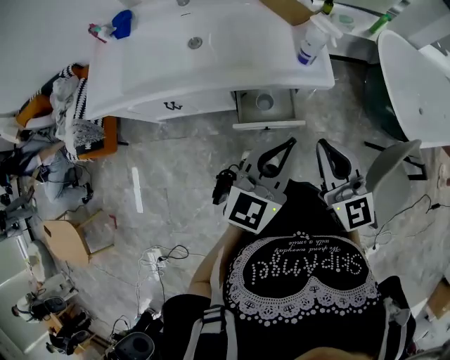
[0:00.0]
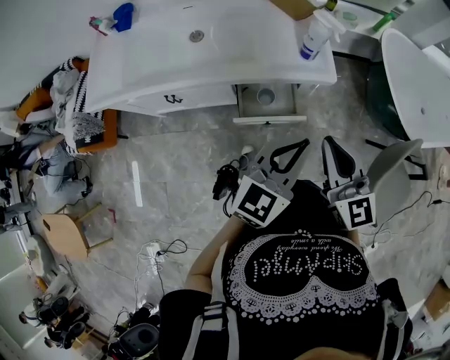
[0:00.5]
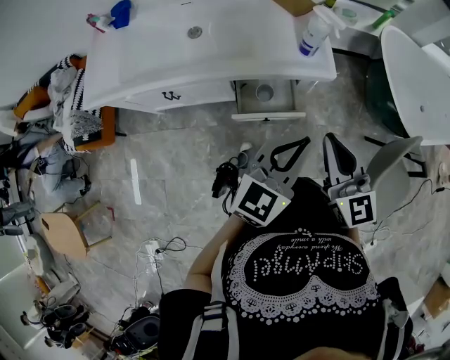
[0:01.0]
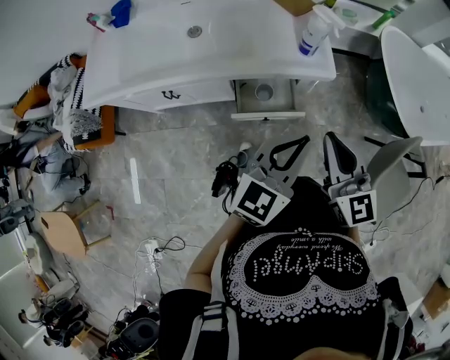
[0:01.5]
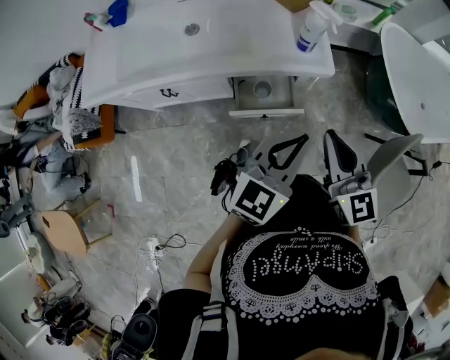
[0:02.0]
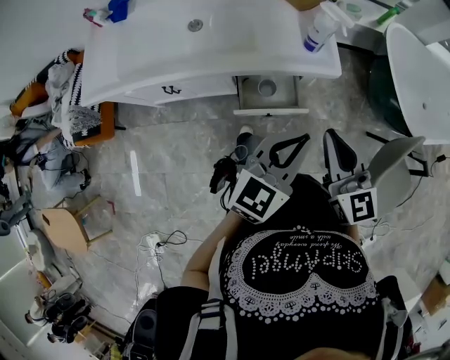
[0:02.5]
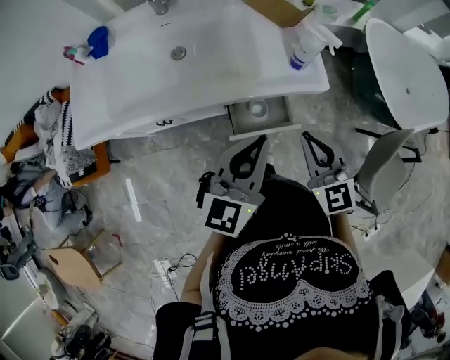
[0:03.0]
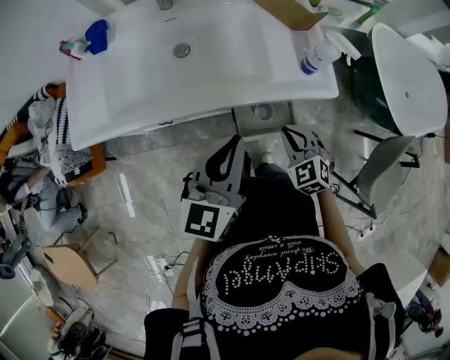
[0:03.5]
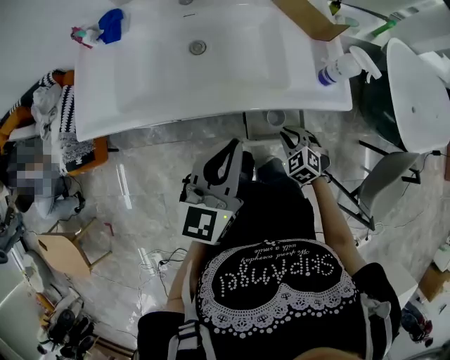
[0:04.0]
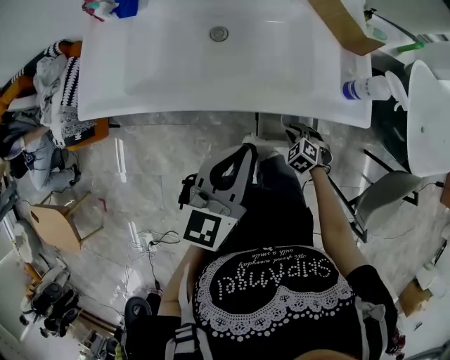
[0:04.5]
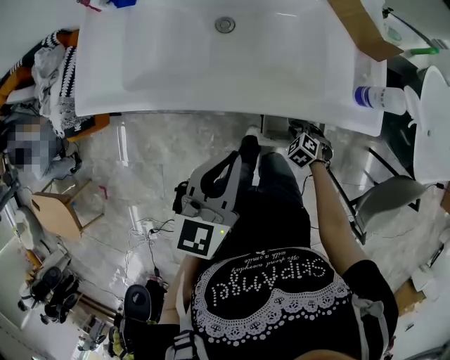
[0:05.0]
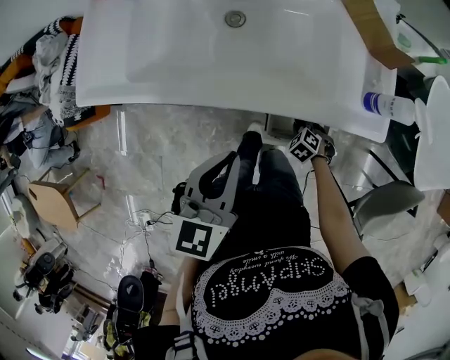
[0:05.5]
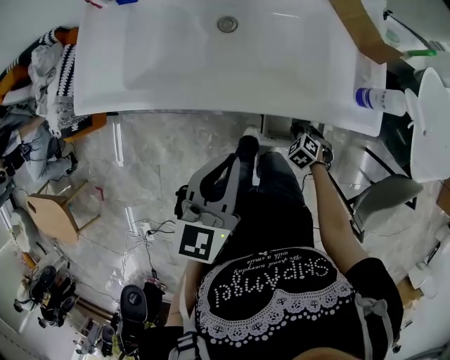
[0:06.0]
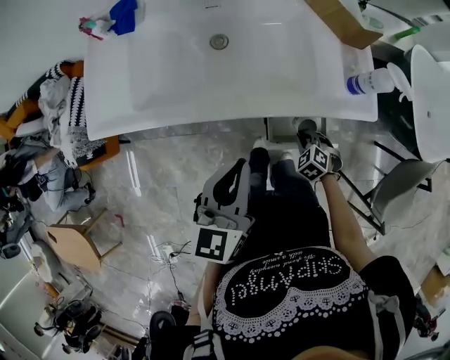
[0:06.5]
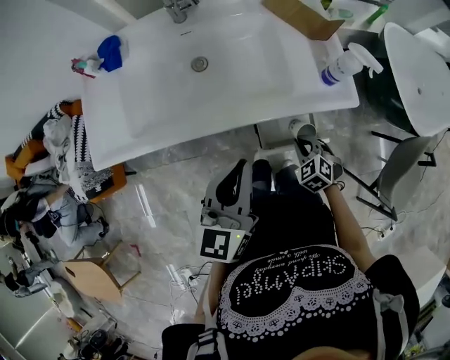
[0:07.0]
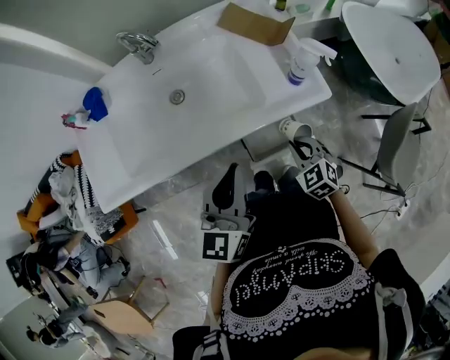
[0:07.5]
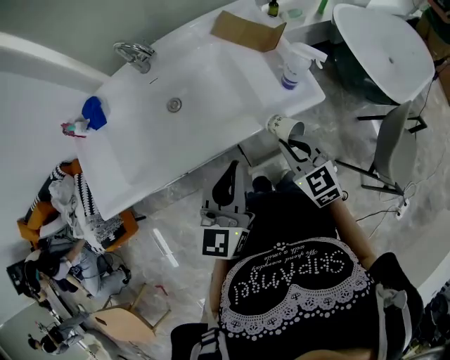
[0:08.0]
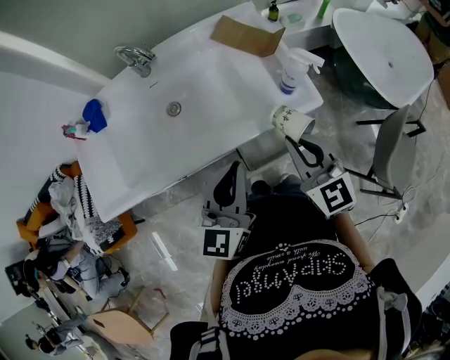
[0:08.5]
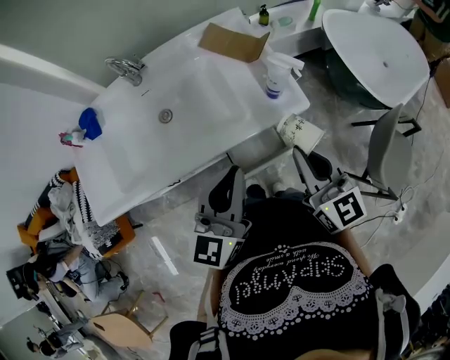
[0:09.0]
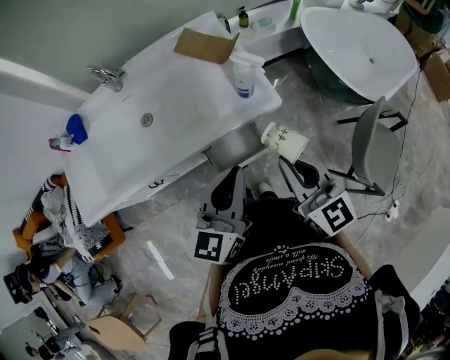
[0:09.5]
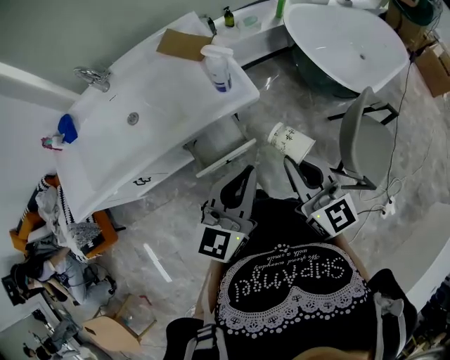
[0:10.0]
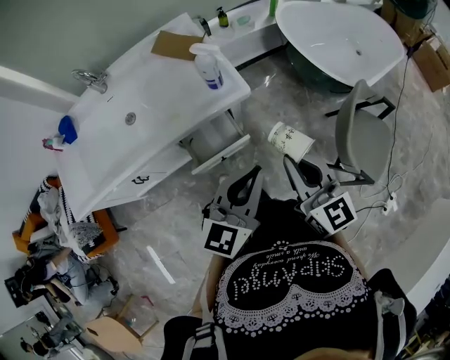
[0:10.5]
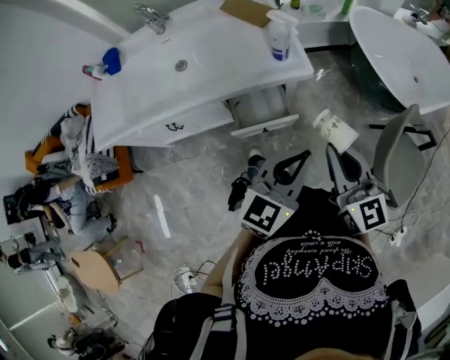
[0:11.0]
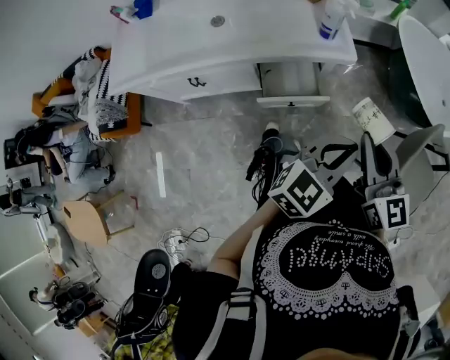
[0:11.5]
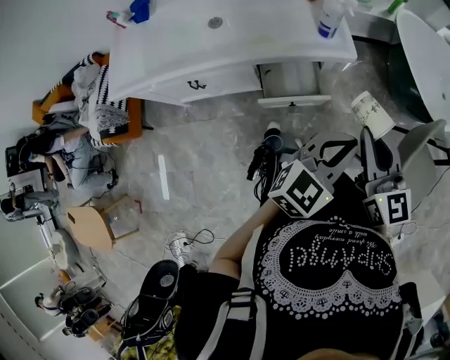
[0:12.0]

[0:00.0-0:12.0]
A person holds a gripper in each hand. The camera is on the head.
0:00.0 to 0:02.0: The grippers move only a little.
0:02.0 to 0:04.0: The left gripper goes about 25 cm to the left and forward, and turns by about 20 degrees. The right gripper goes some 30 cm downward and to the left, and points its fingers approximately 50 degrees further downward.
0:04.0 to 0:06.0: The right gripper is displaced downward by about 10 cm, and swivels some 20 degrees; the left gripper changes place by some 5 cm.
0:06.0 to 0:08.0: The left gripper ends up approximately 10 cm from where it was, and rotates about 30 degrees, while the right gripper moves upward, some 30 cm, and angles its fingers upward, by roughly 50 degrees.
0:08.0 to 0:10.0: The left gripper travels to the right by about 20 cm; the right gripper goes roughly 25 cm to the right, upward and backward, and changes its angle by approximately 30 degrees.
0:10.0 to 0:12.0: The left gripper is displaced to the right by roughly 5 cm.

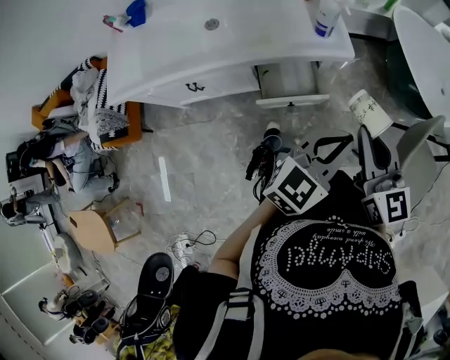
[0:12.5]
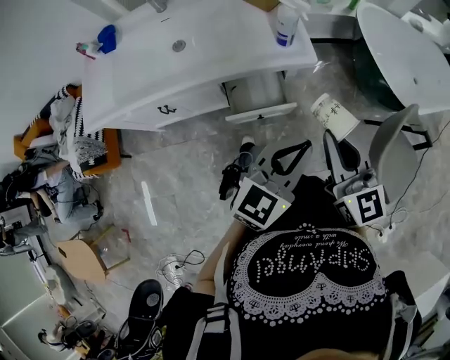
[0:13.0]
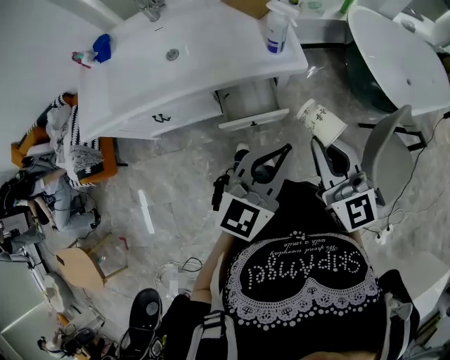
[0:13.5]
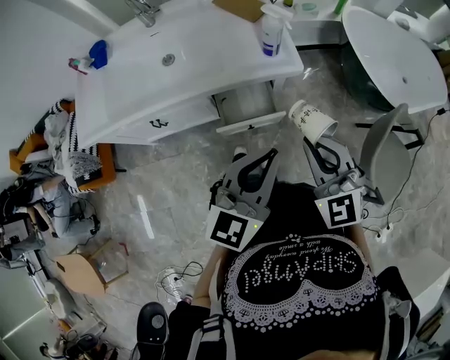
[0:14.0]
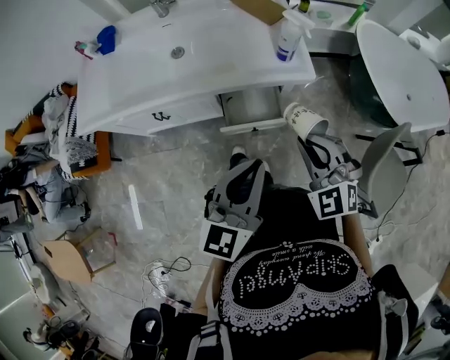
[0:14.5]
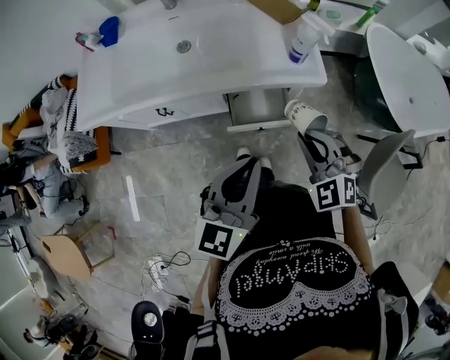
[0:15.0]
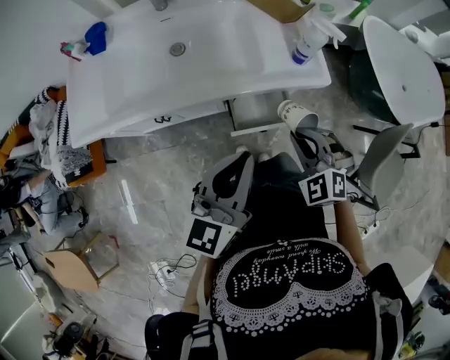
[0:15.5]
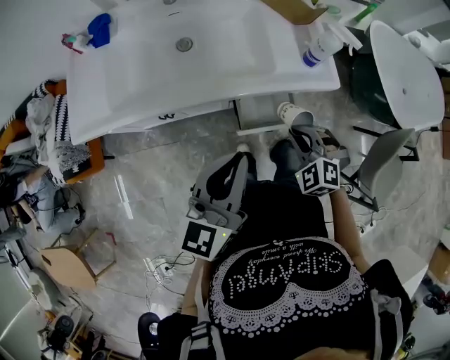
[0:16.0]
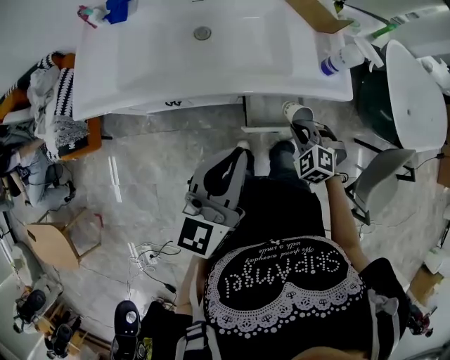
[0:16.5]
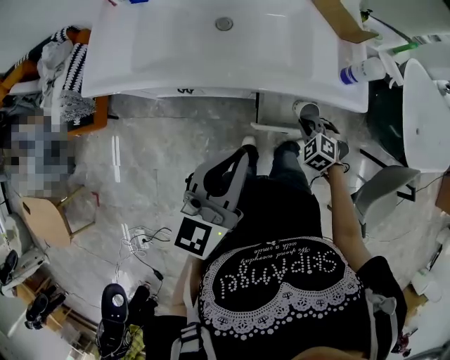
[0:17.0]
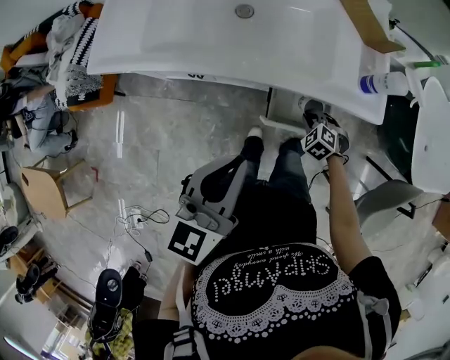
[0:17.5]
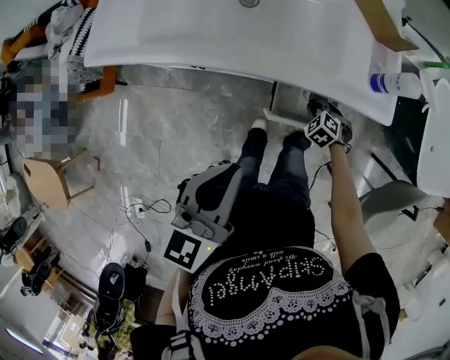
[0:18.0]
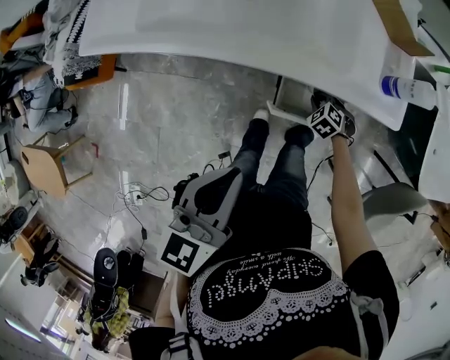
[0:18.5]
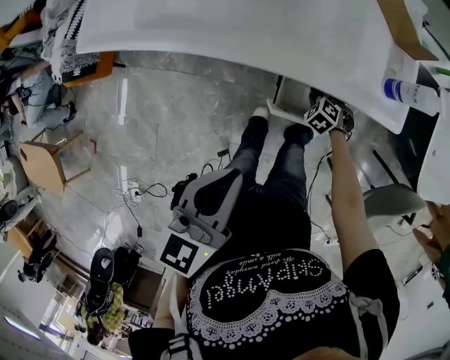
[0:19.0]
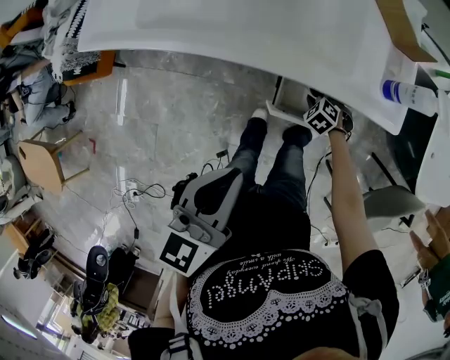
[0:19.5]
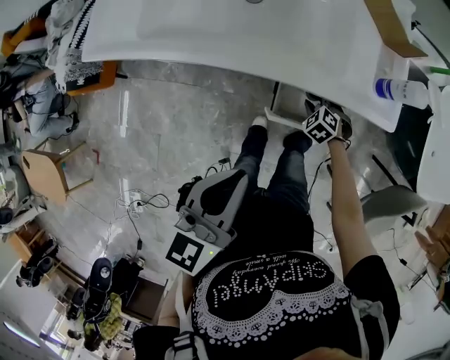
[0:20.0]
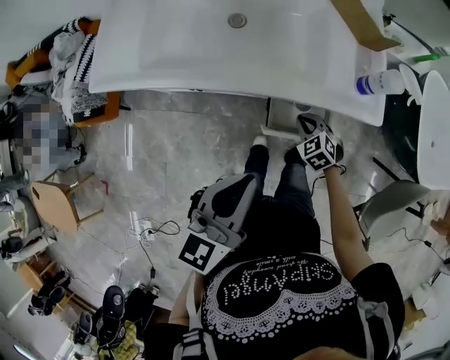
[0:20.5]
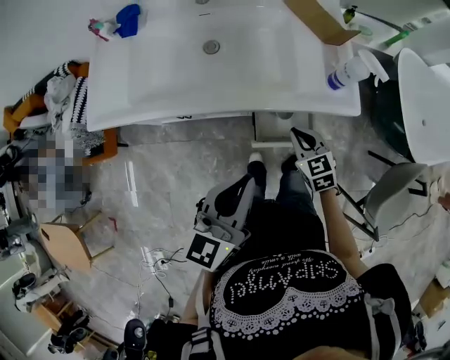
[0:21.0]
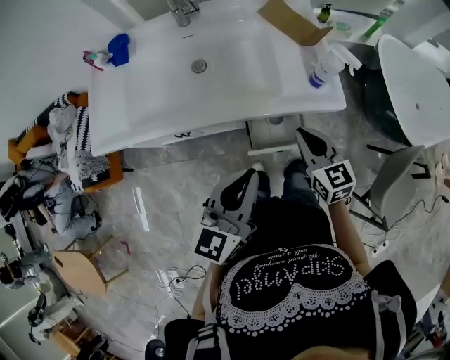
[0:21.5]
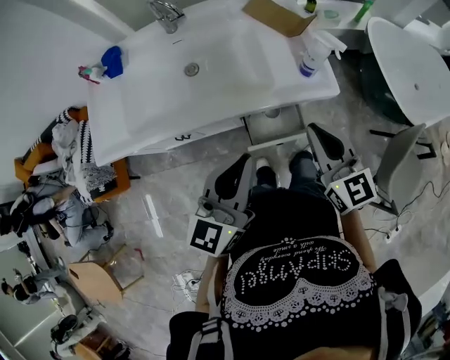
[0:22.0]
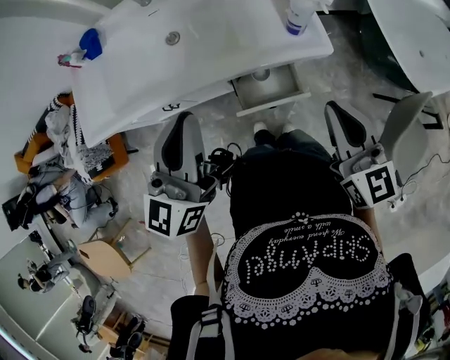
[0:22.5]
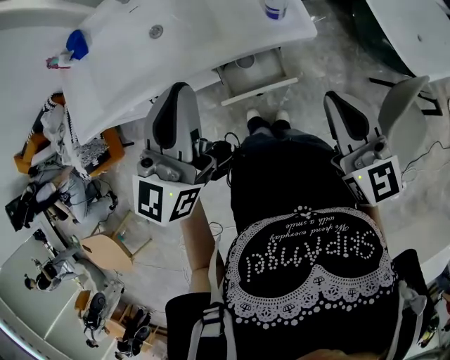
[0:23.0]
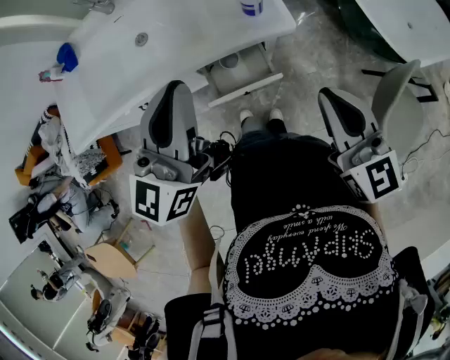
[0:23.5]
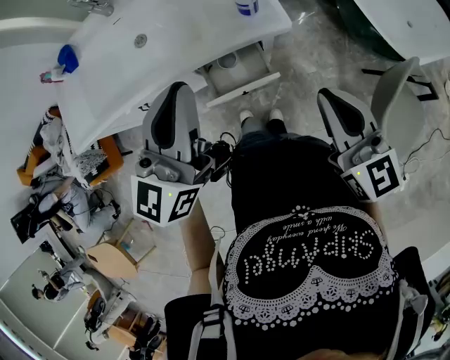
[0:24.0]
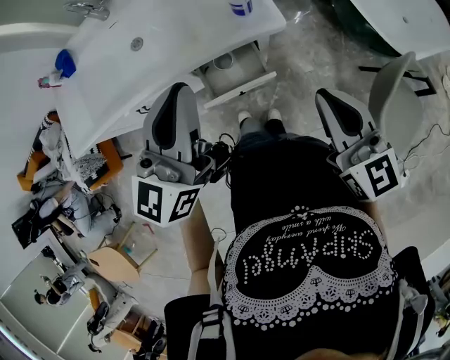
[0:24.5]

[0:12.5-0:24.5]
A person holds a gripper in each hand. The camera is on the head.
0:12.5 to 0:14.5: The left gripper travels to the left by some 10 cm, and swivels about 30 degrees, while the right gripper goes some 5 cm downward, and rolls counterclockwise, seen from behind, by some 50 degrees.
0:14.5 to 0:16.5: The right gripper is displaced downward, forward and to the left by approximately 25 cm, and turns by about 30 degrees. The left gripper travels to the left and forward by some 20 cm.
0:16.5 to 0:18.5: The right gripper goes roughly 20 cm downward; the left gripper heads downward, covering roughly 5 cm.
0:18.5 to 0:20.5: The right gripper shifts some 10 cm upward, and rotates some 20 degrees.
0:20.5 to 0:22.5: The left gripper goes roughly 15 cm upward and to the right. Meanwhile the right gripper is displaced upward and to the right by roughly 40 cm, and tips its fingers upward by about 50 degrees.
0:22.5 to 0:24.5: The left gripper shifts by roughly 5 cm.

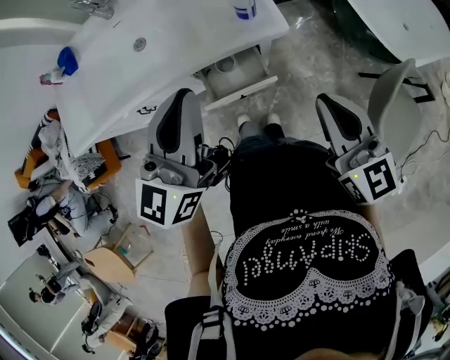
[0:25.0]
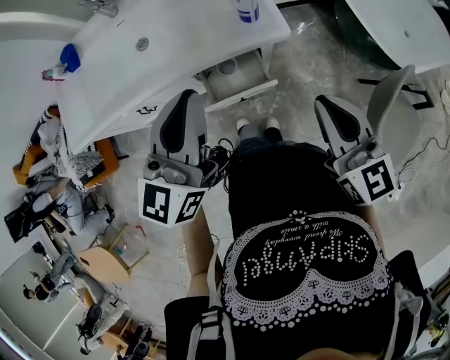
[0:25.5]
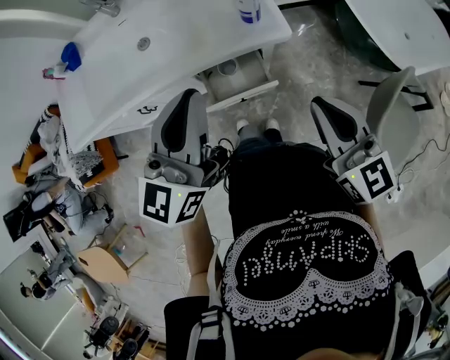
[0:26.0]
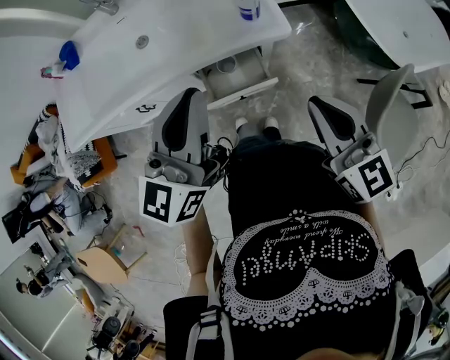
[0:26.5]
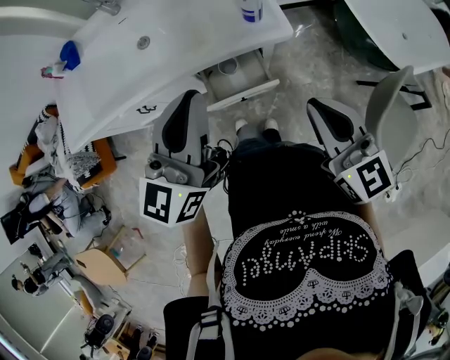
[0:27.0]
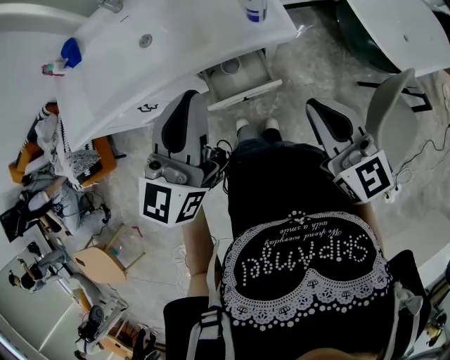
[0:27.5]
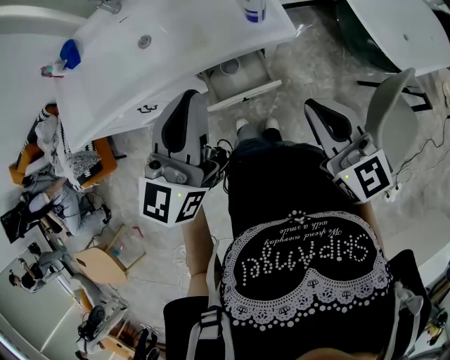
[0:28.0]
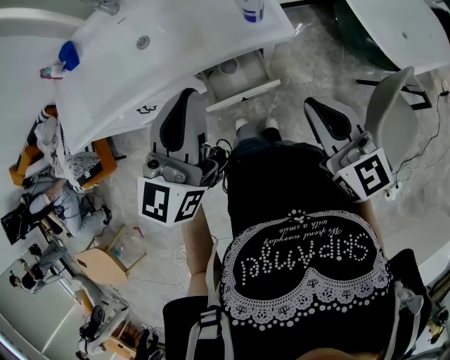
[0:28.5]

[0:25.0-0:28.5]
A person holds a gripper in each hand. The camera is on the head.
0:25.0 to 0:27.0: The grippers make only small movements.
0:27.0 to 0:28.5: Neither gripper changes place.
